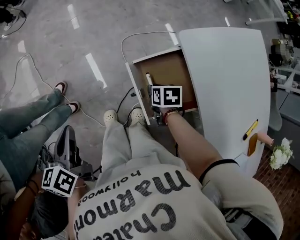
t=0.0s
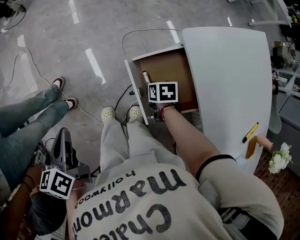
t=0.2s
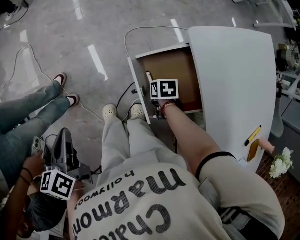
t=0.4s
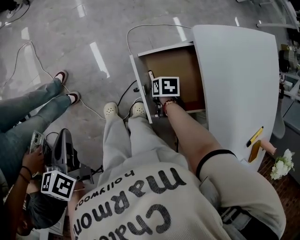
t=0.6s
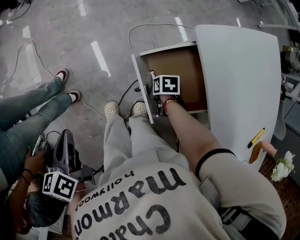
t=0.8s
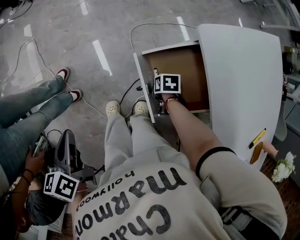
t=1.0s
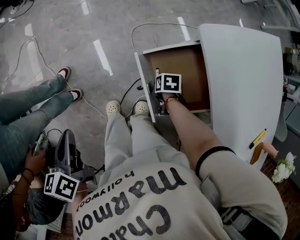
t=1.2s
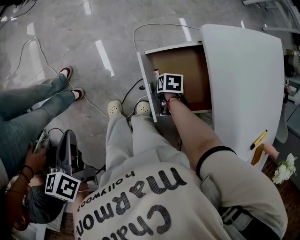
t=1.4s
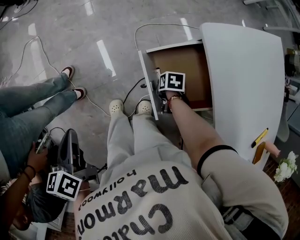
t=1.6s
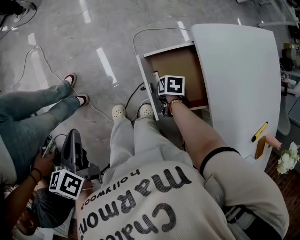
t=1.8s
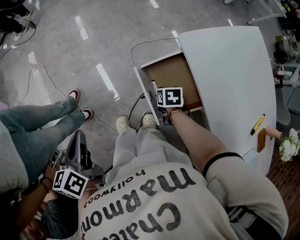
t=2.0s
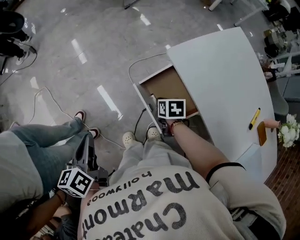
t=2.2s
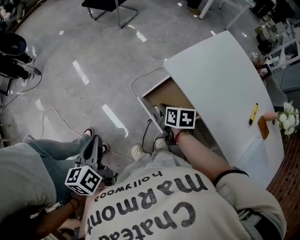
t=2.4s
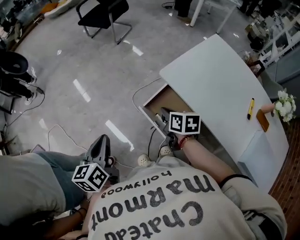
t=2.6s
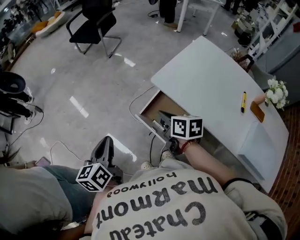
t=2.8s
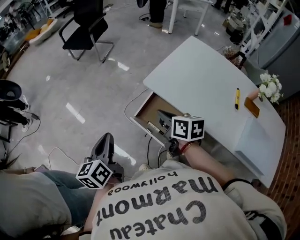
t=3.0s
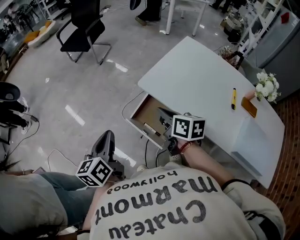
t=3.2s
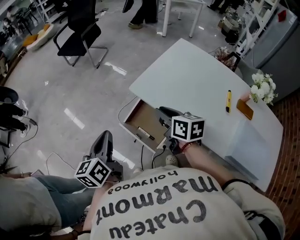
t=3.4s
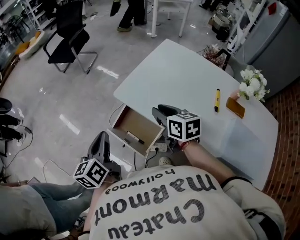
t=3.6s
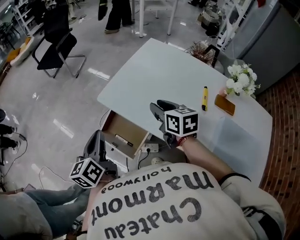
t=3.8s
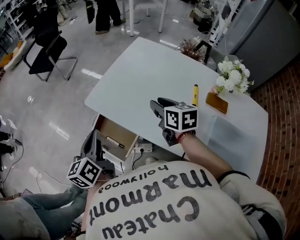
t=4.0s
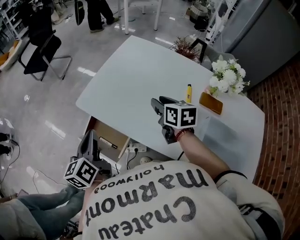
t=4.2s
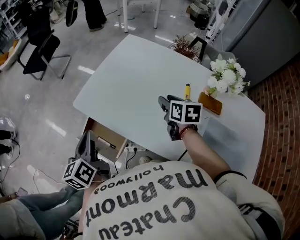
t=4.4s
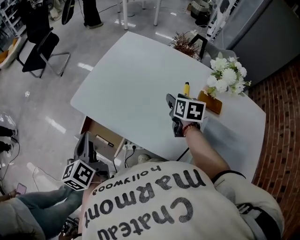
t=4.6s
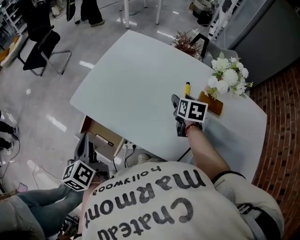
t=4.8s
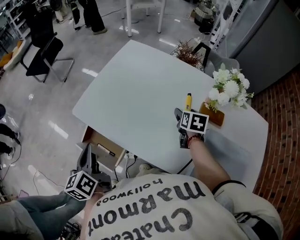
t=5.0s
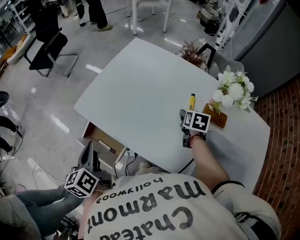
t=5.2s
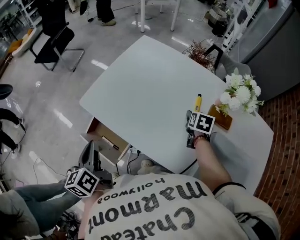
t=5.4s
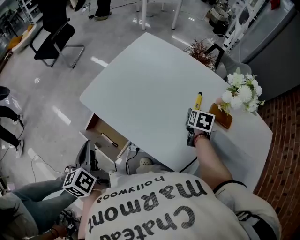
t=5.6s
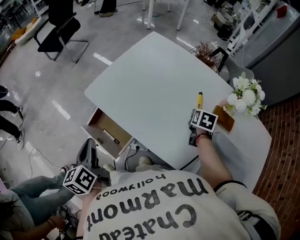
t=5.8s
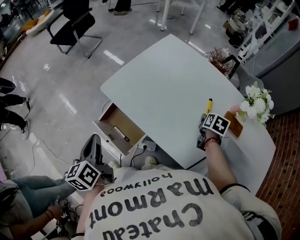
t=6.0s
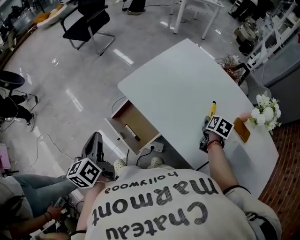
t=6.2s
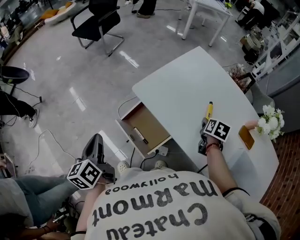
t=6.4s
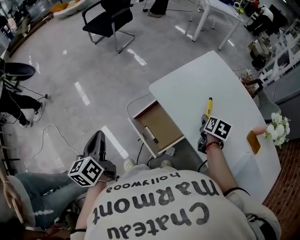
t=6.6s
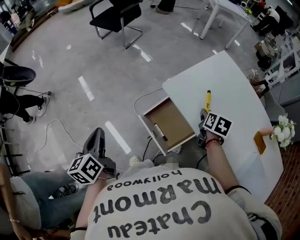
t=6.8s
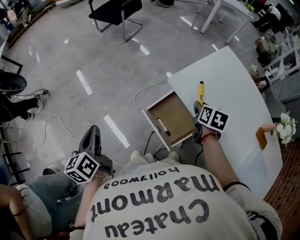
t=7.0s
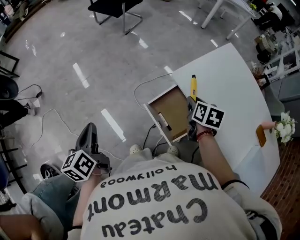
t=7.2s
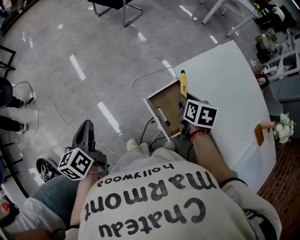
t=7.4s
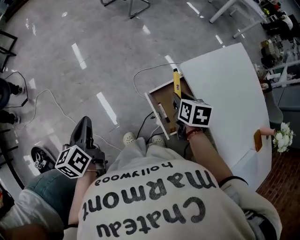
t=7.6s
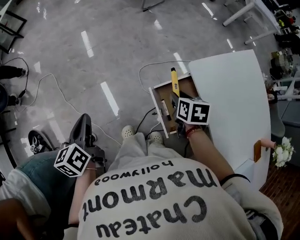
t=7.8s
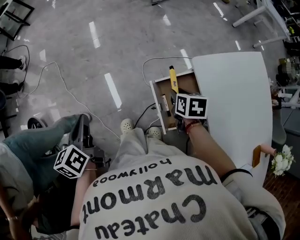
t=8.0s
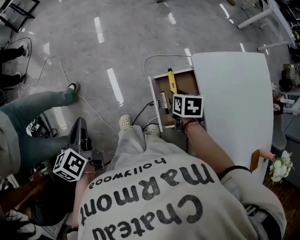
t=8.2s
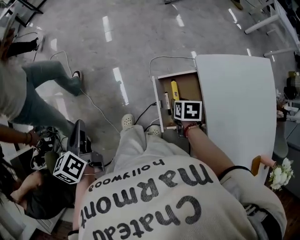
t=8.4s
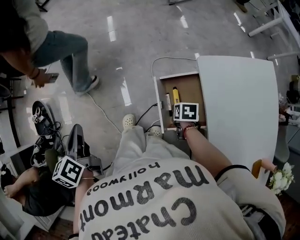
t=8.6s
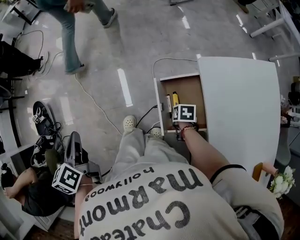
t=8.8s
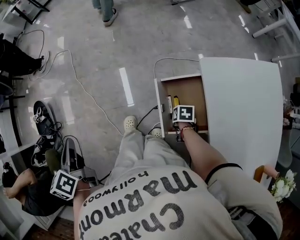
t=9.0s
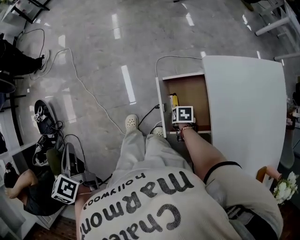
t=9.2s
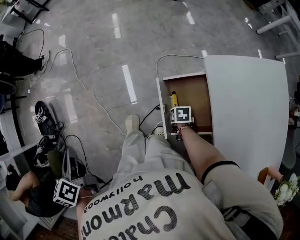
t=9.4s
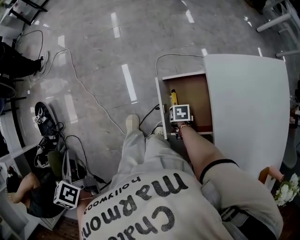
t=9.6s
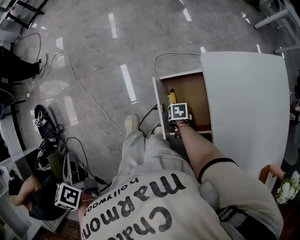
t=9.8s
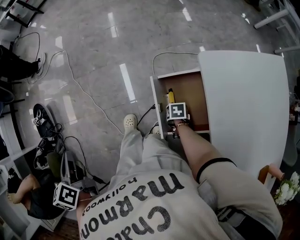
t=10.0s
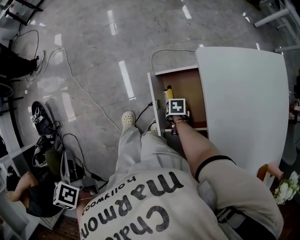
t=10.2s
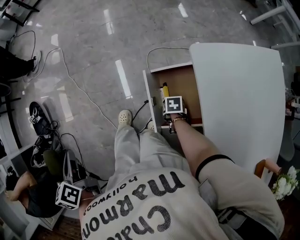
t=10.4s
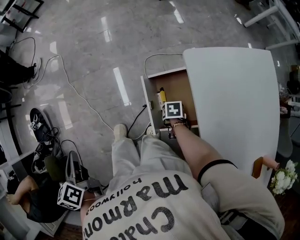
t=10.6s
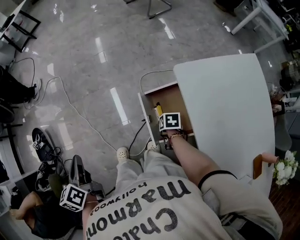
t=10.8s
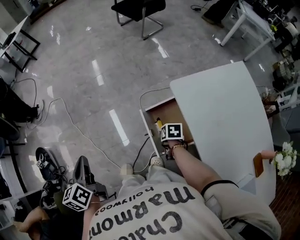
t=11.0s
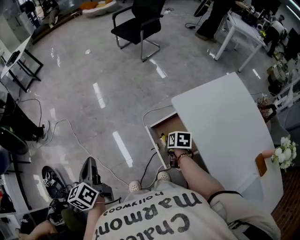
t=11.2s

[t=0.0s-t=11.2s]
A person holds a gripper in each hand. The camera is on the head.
t=0.0s to t=1.6s: The right gripper is displaced downward by some 10 cm. The left gripper shifts by some 5 cm.
t=1.6s to t=3.2s: The right gripper heads upward, covering approximately 40 cm, and tilts its fingers some 50 degrees upward, while the left gripper moves some 25 cm, and turns by some 50 degrees.
t=3.2s to t=4.8s: The left gripper travels to the right by some 25 cm; the right gripper moves to the right, roughly 50 cm, rotates approximately 40 degrees, and opens.
t=4.8s to t=6.4s: The left gripper is displaced to the left and backward by approximately 25 cm. Meanwhile the right gripper moves to the left, about 15 cm, and closes.
t=6.4s to t=8.0s: The left gripper moves some 25 cm, and swivels roughly 30 degrees. Meanwhile the right gripper changes place by approximately 40 cm, and swivels some 50 degrees.
t=8.0s to t=9.6s: The right gripper shifts about 25 cm downward, and turns by approximately 20 degrees. The left gripper changes place by about 15 cm, and swivels some 20 degrees.
t=9.6s to t=11.2s: The right gripper moves upward, about 25 cm, and rotates roughly 30 degrees, while the left gripper changes place by roughly 15 cm, and changes its angle by about 30 degrees.

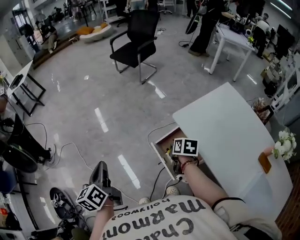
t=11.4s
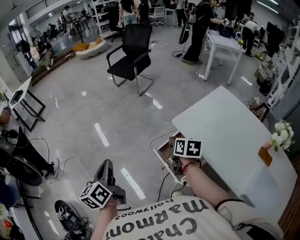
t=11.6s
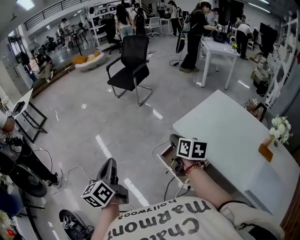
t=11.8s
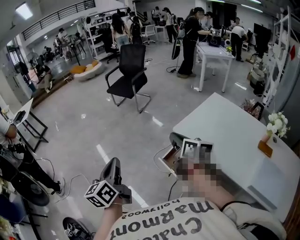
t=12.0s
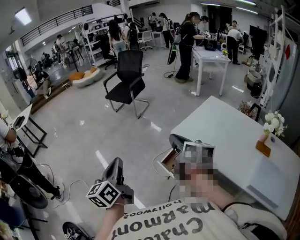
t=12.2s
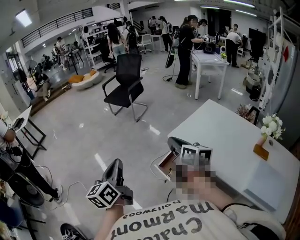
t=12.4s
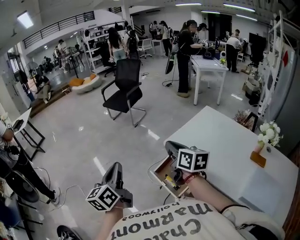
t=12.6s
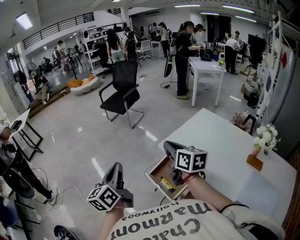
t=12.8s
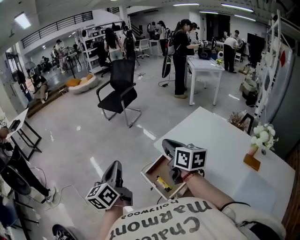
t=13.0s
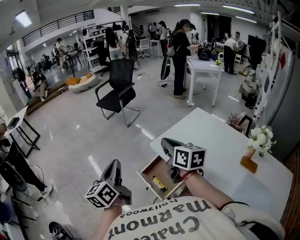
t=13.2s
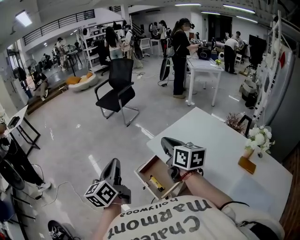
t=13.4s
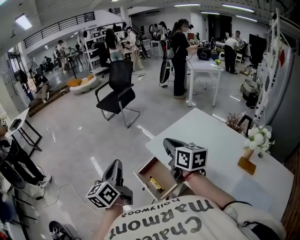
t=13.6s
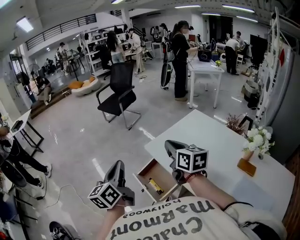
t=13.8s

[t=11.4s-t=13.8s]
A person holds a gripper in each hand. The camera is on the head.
t=11.4s to t=12.6s: The right gripper shifts roughly 25 cm upward, and tips its fingers upward by roughly 40 degrees, while the left gripper travels upward and to the right by roughly 20 cm, and rotates approximately 30 degrees.
t=12.6s to t=13.8s: The grippers both shift to the right by roughly 15 cm.

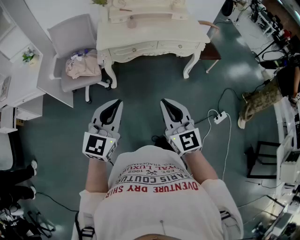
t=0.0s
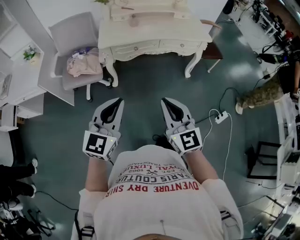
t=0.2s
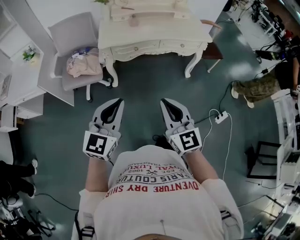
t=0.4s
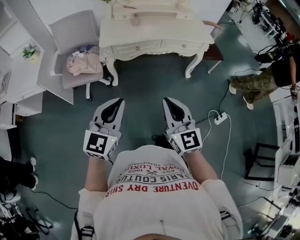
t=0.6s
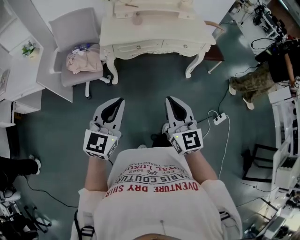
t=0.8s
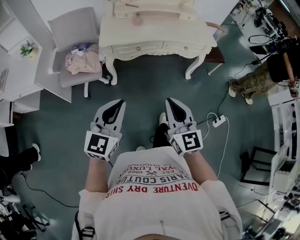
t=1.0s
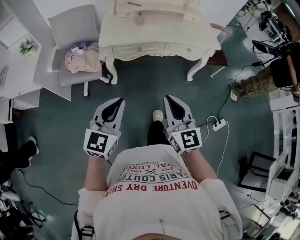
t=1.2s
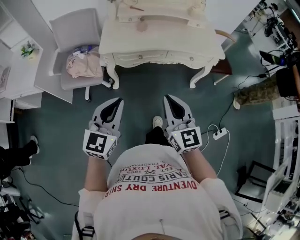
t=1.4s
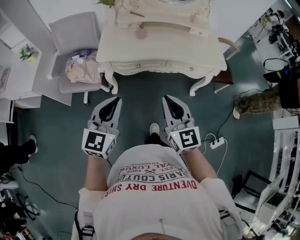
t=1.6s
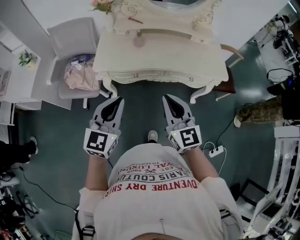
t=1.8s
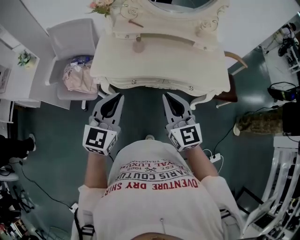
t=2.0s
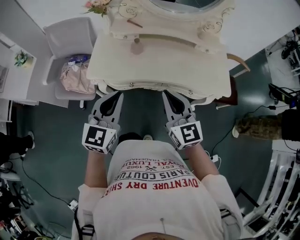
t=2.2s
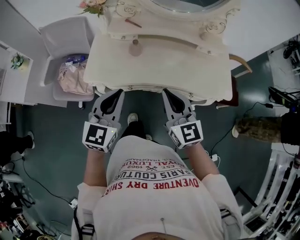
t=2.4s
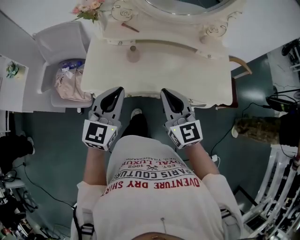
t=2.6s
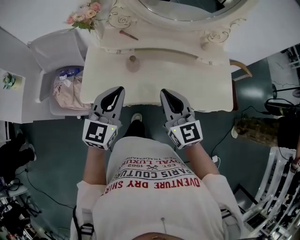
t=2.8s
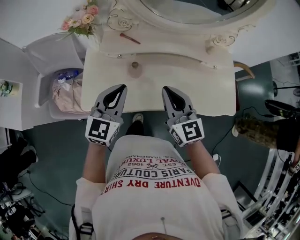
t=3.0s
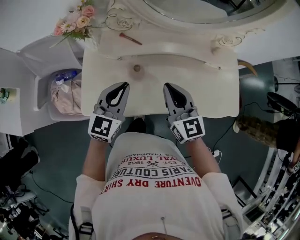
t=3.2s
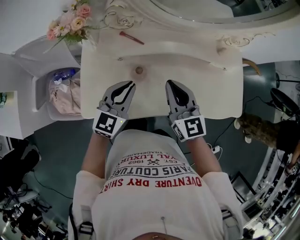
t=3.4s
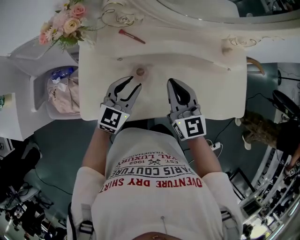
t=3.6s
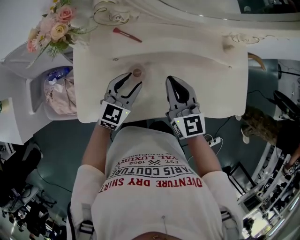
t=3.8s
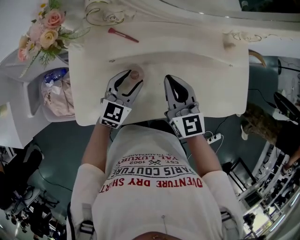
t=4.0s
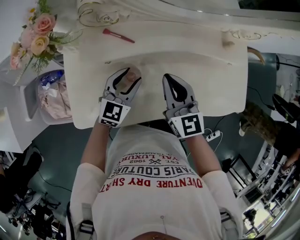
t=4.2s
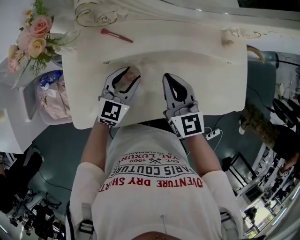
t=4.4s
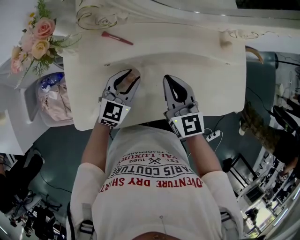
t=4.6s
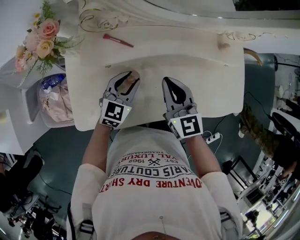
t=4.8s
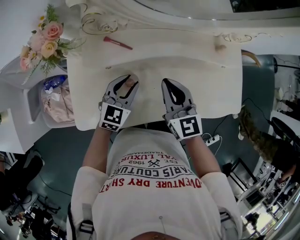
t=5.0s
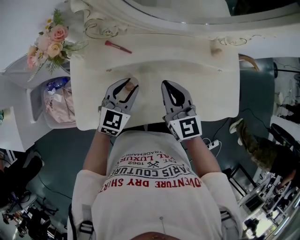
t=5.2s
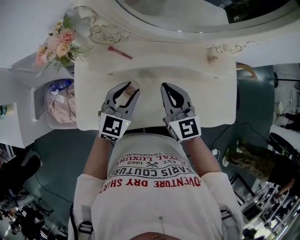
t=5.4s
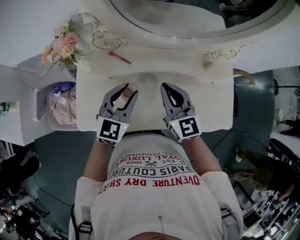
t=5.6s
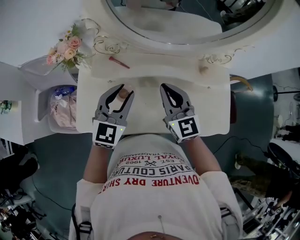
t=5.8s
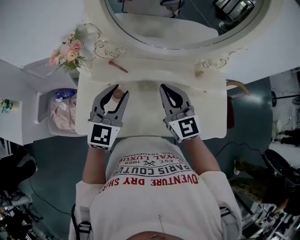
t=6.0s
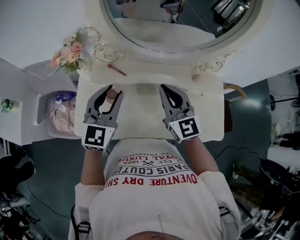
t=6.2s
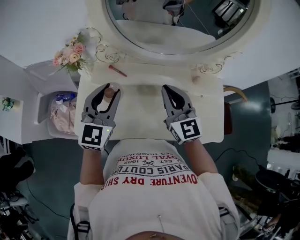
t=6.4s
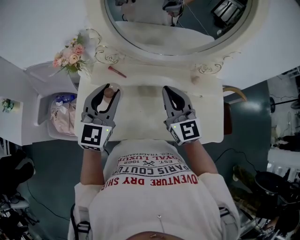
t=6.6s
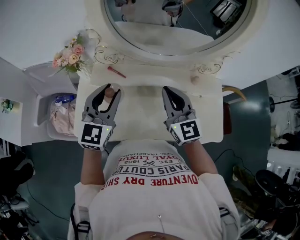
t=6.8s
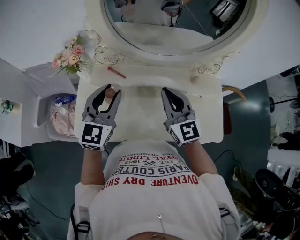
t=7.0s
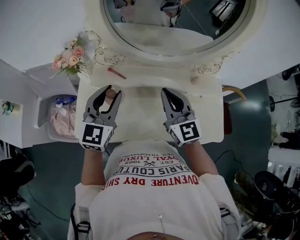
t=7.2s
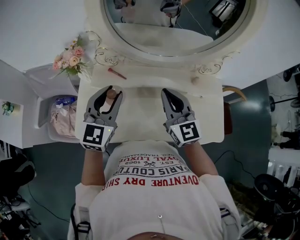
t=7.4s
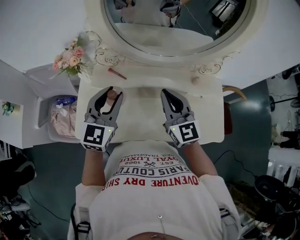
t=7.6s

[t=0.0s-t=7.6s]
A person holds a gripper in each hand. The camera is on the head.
t=0.0s to t=1.6s: The two grippers go roughly 25 cm forward.
t=1.6s to t=3.0s: The pair of grippers is taken forward, about 40 cm.
t=3.0s to t=4.6s: The left gripper goes some 25 cm downward and forward, and opens up; the right gripper is displaced forward and downward by about 20 cm.
t=4.6s to t=6.0s: The left gripper heads upward, covering some 25 cm, and rotates approximately 20 degrees, while the right gripper travels upward by roughly 15 cm.
t=6.0s to t=7.6s: There are only small adjustments of the grippers.

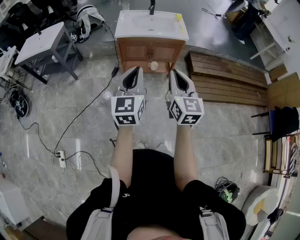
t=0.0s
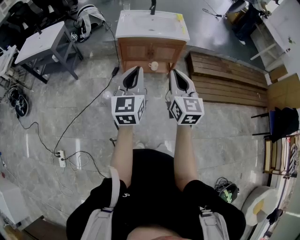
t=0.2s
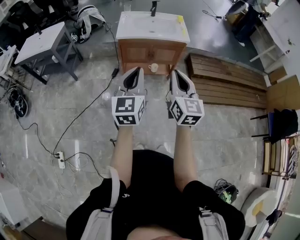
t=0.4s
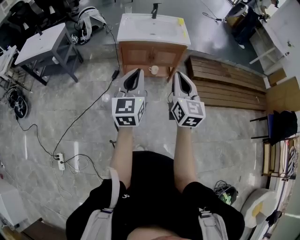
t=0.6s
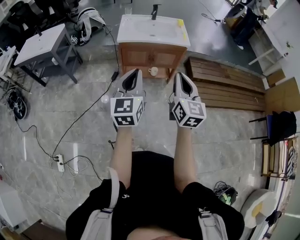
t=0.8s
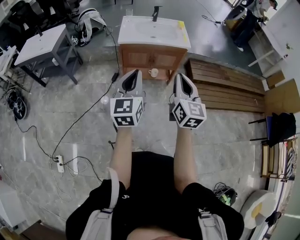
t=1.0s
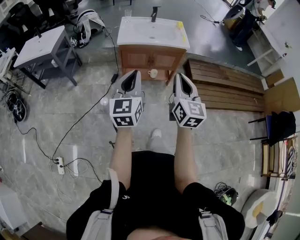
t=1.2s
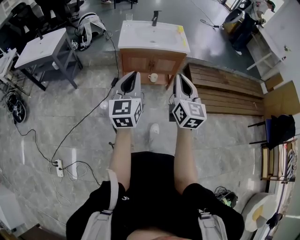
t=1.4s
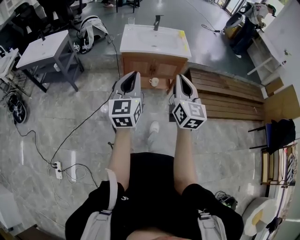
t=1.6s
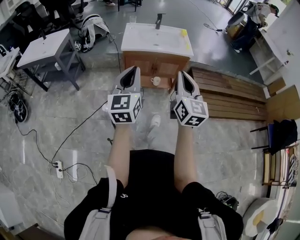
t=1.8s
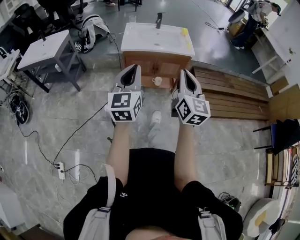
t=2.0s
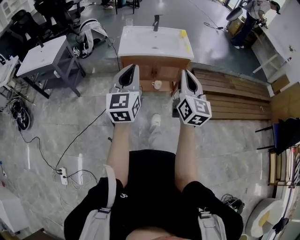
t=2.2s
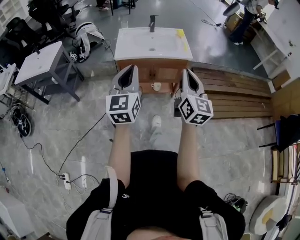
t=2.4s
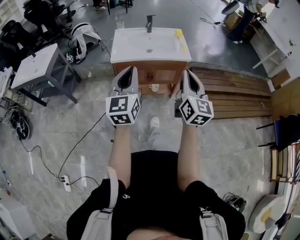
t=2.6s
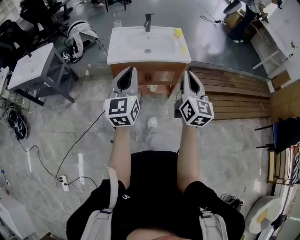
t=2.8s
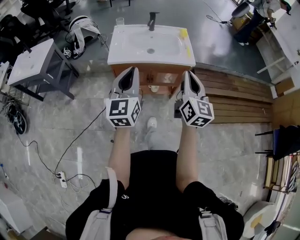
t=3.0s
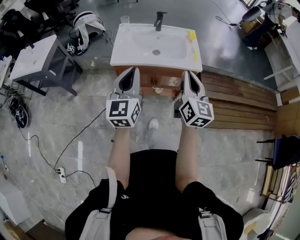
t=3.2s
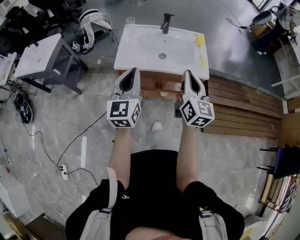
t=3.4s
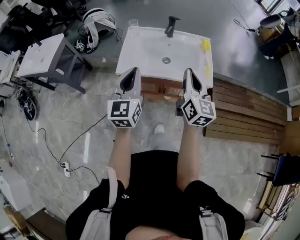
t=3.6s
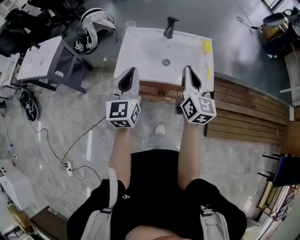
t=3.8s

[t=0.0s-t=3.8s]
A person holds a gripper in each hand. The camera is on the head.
t=0.0s to t=1.2s: The left gripper ends up approximately 5 cm from where it was.
t=1.2s to t=2.6s: Both grippers travel together forward, about 15 cm.
t=2.6s to t=3.8s: Both grippers move forward, approximately 30 cm.
